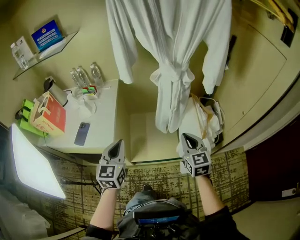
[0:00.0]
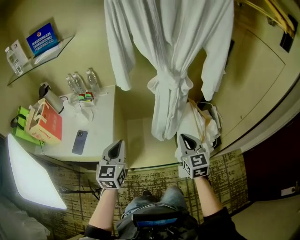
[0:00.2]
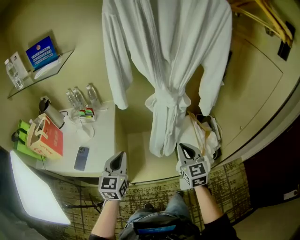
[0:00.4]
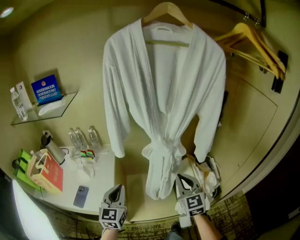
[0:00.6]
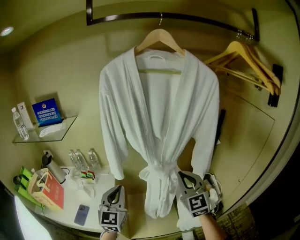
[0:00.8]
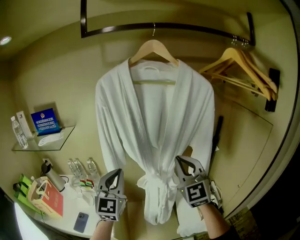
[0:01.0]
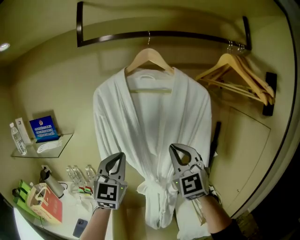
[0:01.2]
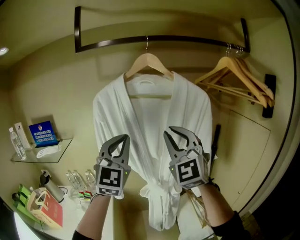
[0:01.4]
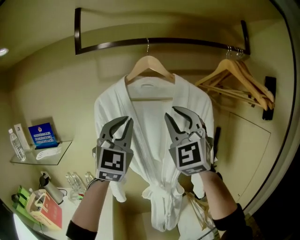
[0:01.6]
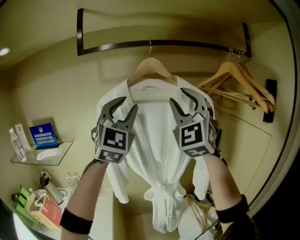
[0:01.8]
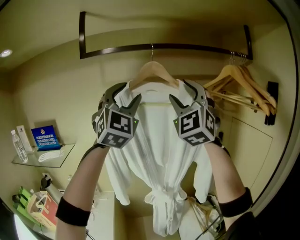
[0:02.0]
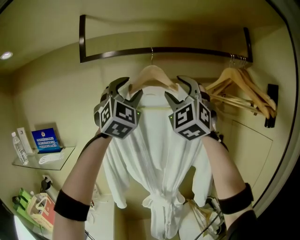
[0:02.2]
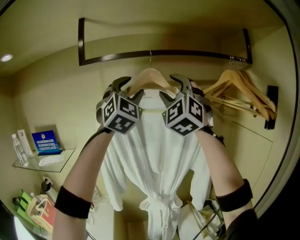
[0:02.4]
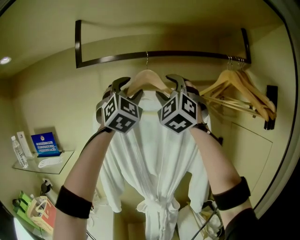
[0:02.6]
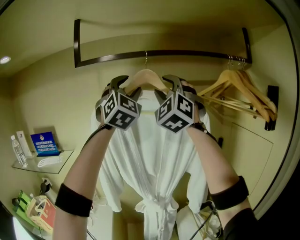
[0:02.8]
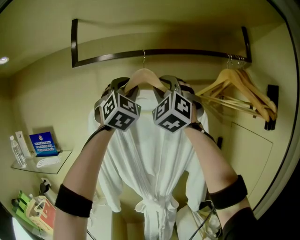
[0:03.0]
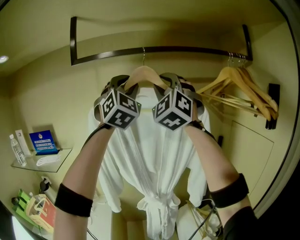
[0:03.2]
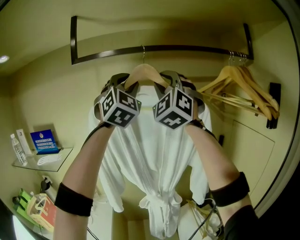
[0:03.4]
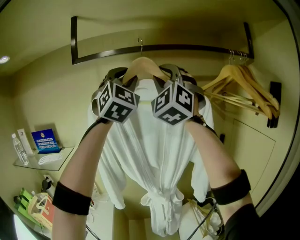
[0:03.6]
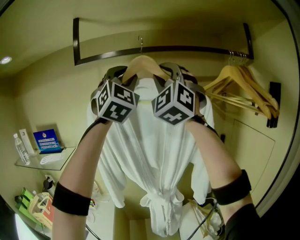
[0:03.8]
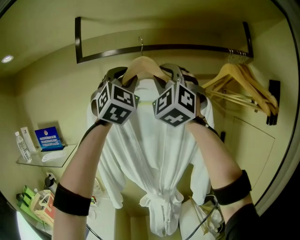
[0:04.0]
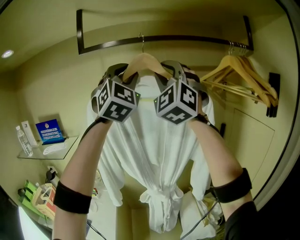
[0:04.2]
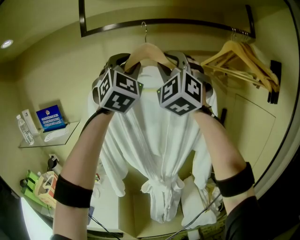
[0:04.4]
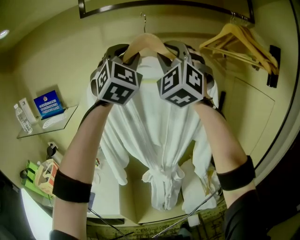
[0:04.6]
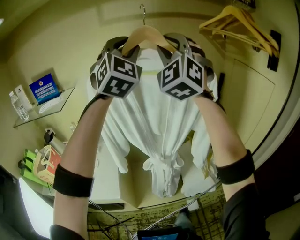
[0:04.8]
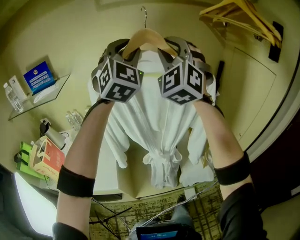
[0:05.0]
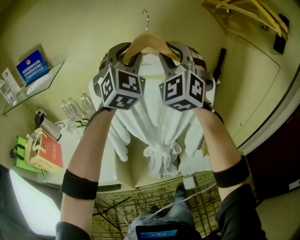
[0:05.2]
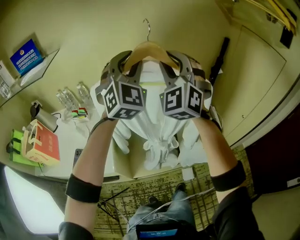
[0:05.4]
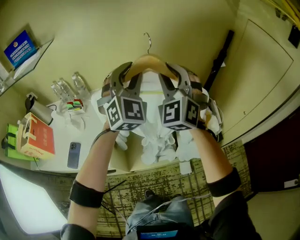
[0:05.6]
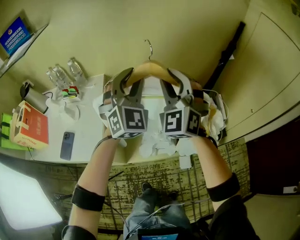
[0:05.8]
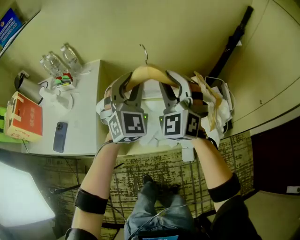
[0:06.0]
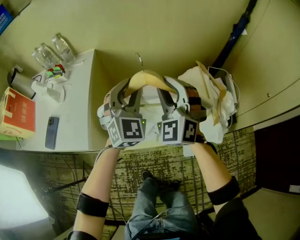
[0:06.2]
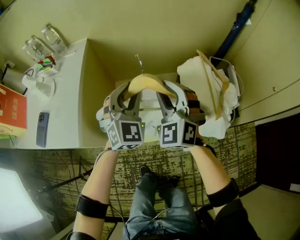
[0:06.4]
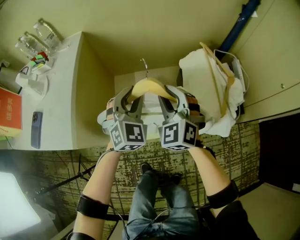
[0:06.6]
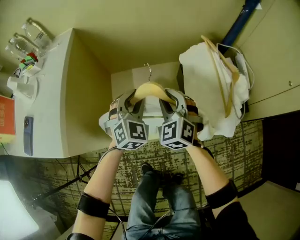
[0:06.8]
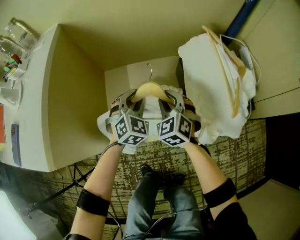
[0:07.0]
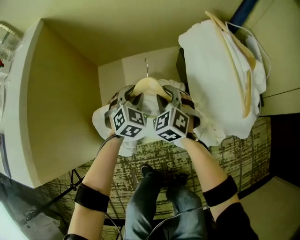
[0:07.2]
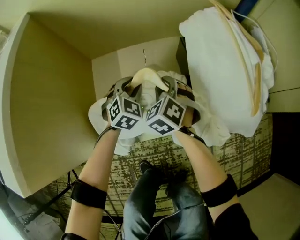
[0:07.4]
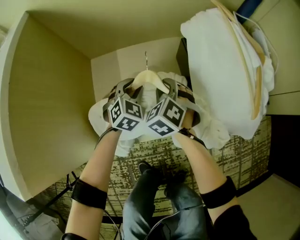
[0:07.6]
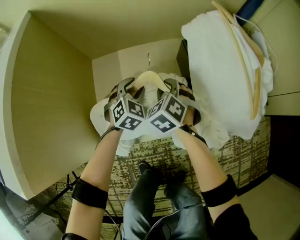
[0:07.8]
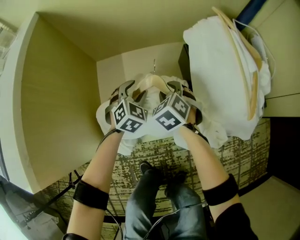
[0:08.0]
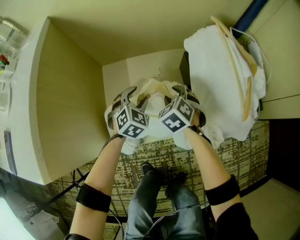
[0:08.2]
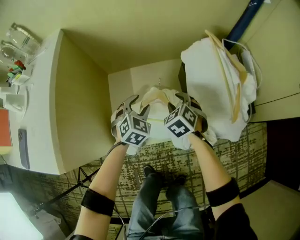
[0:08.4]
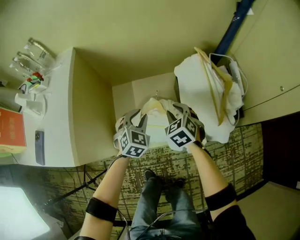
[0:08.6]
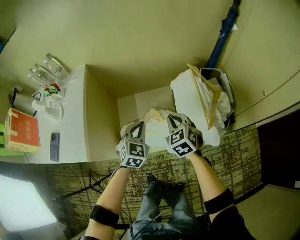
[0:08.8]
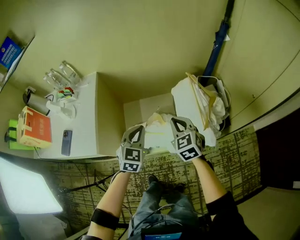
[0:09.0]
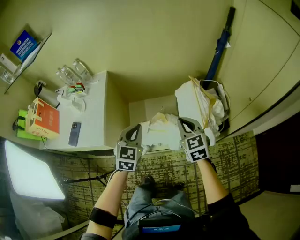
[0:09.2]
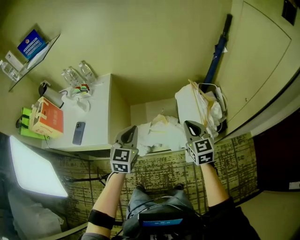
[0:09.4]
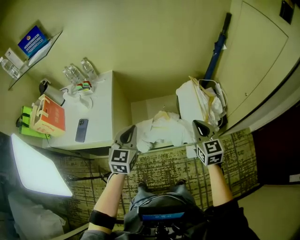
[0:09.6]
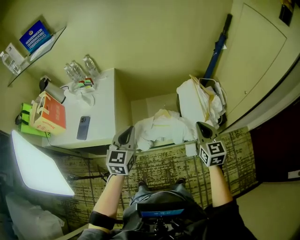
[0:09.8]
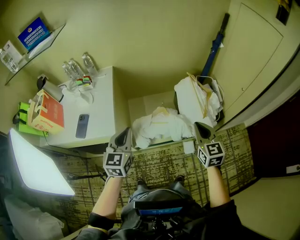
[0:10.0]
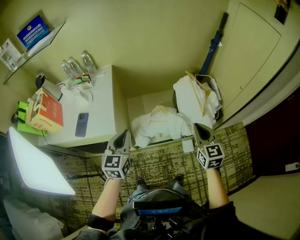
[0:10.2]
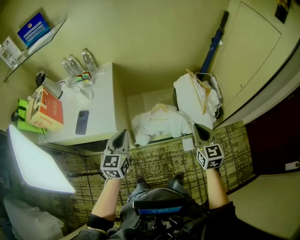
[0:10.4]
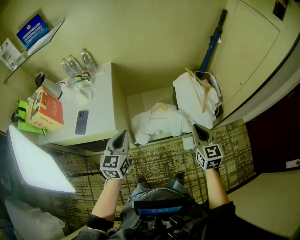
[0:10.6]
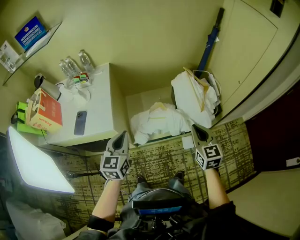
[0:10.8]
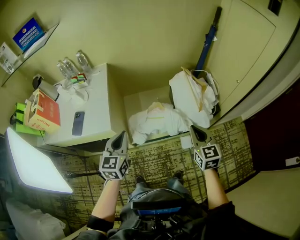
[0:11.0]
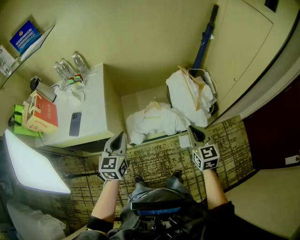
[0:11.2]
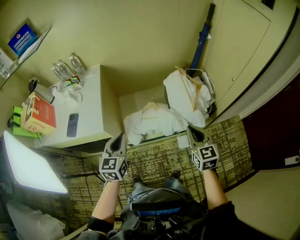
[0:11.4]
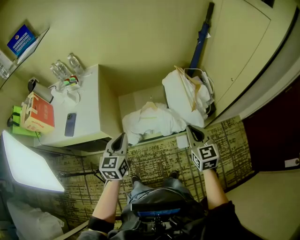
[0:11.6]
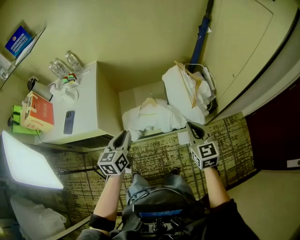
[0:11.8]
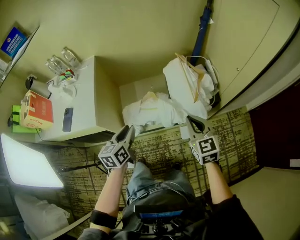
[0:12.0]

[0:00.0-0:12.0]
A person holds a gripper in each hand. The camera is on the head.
0:00.0 to 0:01.6: Both grippers move upward and forward, approximately 60 cm. The left gripper points its fingers roughly 30 degrees further upward, while the right gripper tips its fingers upward by roughly 40 degrees.
0:01.6 to 0:03.0: Both grippers travel together upward and forward, roughly 15 cm. The right gripper swivels about 20 degrees, and opens and closes again. The left gripper opens its fingers.
0:03.0 to 0:04.4: Both grippers move backward, some 10 cm.
0:04.4 to 0:06.0: Both grippers move downward, roughly 60 cm. The right gripper changes its angle by some 30 degrees. Meanwhile the left gripper rotates some 30 degrees.
0:06.0 to 0:07.6: Both grippers move downward, some 60 cm. The right gripper angles its fingers downward, by some 40 degrees, while the left gripper angles its fingers downward, by approximately 40 degrees.
0:07.6 to 0:09.0: The grippers both shift upward by some 40 cm. The right gripper changes its angle by about 30 degrees, and closes its fingers. The left gripper closes up.
0:09.0 to 0:10.4: The left gripper heads to the left, backward and upward, covering roughly 25 cm, and swivels roughly 20 degrees; the right gripper goes about 25 cm backward and upward, and swivels about 20 degrees.
0:10.4 to 0:12.0: The left gripper goes about 15 cm to the right and downward, changes its angle by approximately 30 degrees, and opens. Meanwhile the right gripper goes some 10 cm to the right.

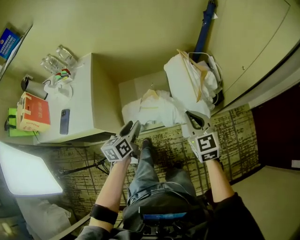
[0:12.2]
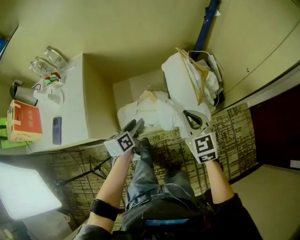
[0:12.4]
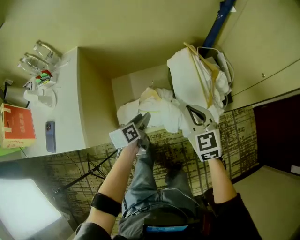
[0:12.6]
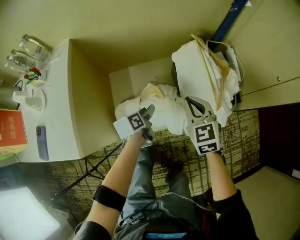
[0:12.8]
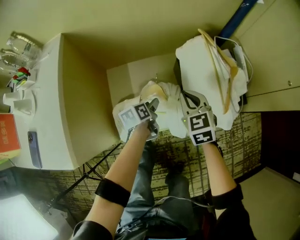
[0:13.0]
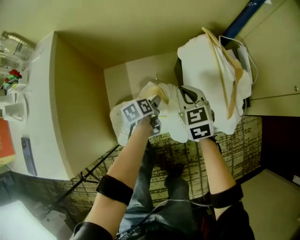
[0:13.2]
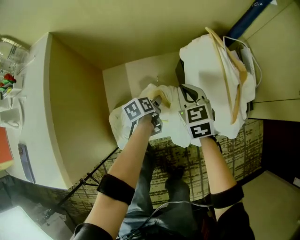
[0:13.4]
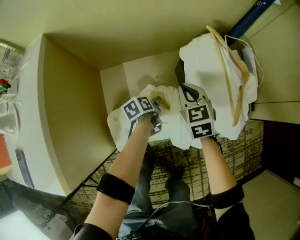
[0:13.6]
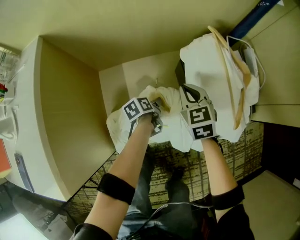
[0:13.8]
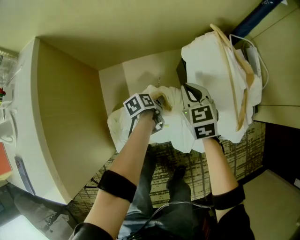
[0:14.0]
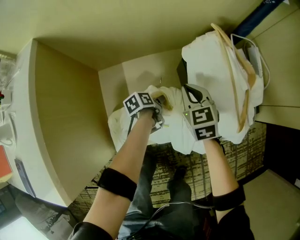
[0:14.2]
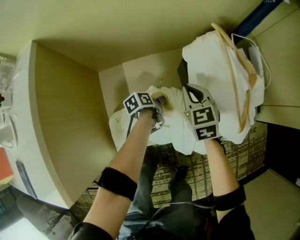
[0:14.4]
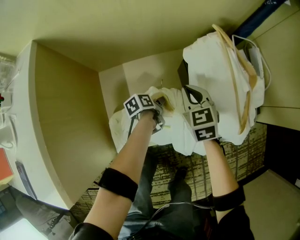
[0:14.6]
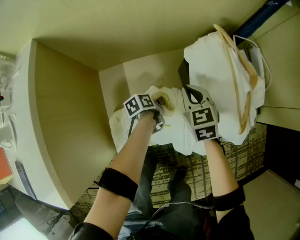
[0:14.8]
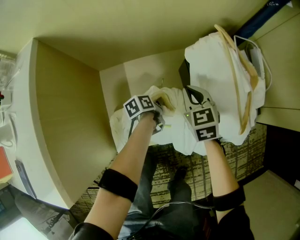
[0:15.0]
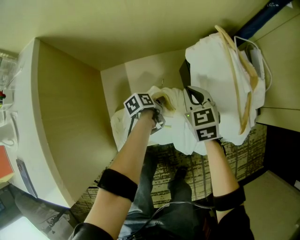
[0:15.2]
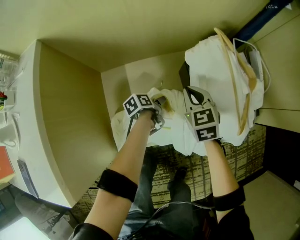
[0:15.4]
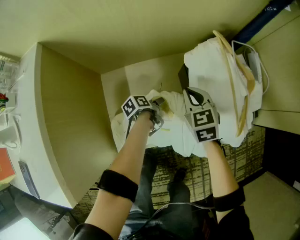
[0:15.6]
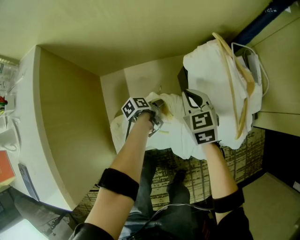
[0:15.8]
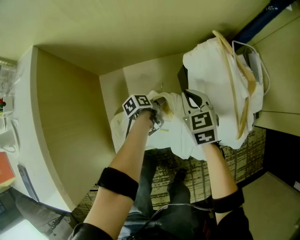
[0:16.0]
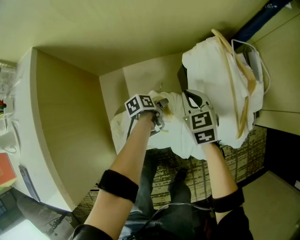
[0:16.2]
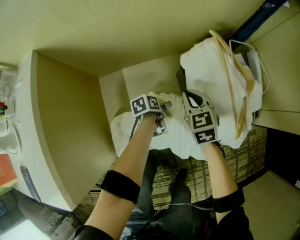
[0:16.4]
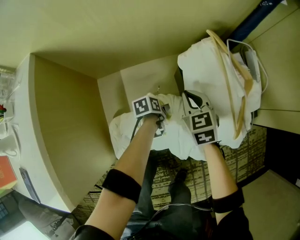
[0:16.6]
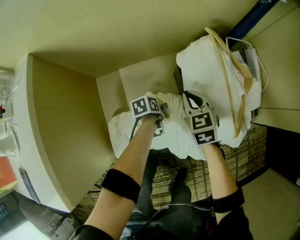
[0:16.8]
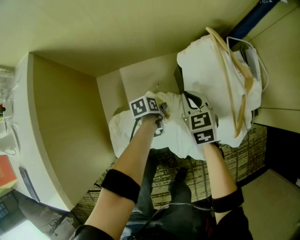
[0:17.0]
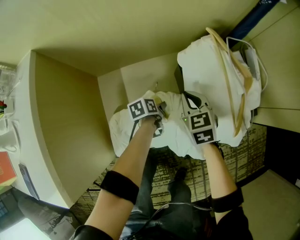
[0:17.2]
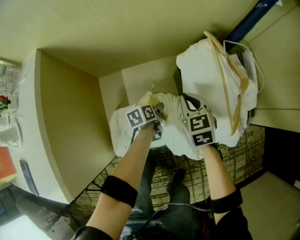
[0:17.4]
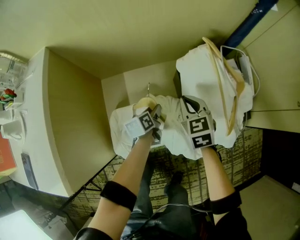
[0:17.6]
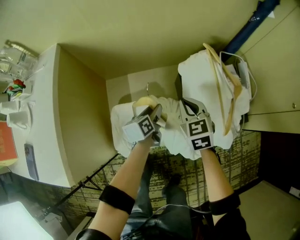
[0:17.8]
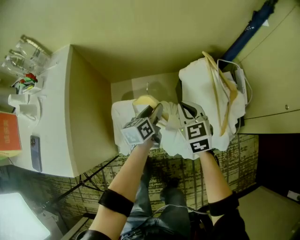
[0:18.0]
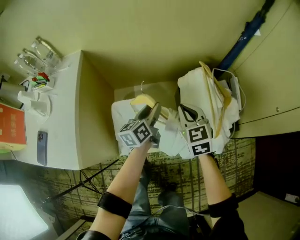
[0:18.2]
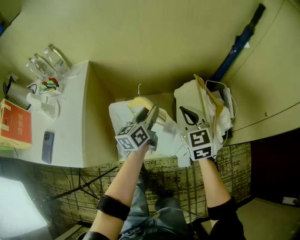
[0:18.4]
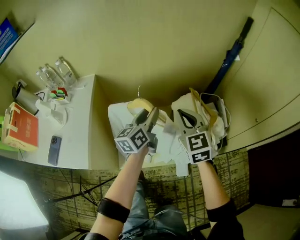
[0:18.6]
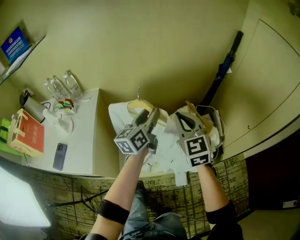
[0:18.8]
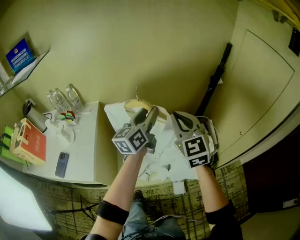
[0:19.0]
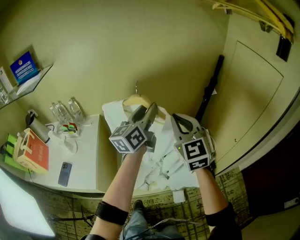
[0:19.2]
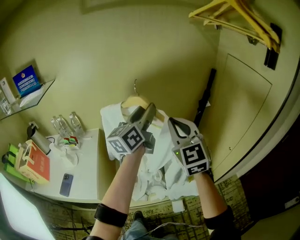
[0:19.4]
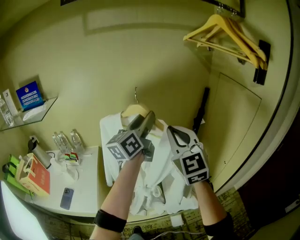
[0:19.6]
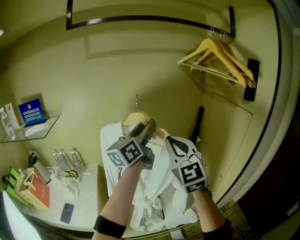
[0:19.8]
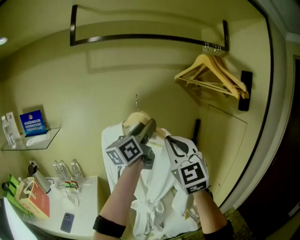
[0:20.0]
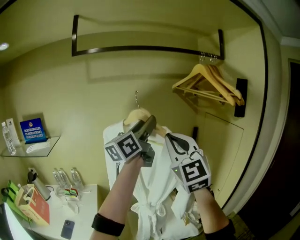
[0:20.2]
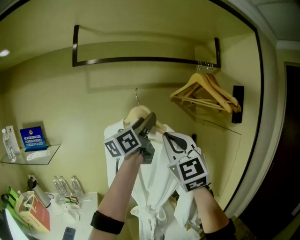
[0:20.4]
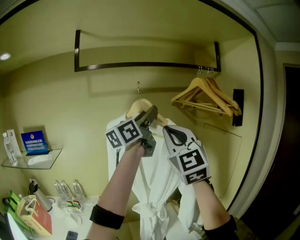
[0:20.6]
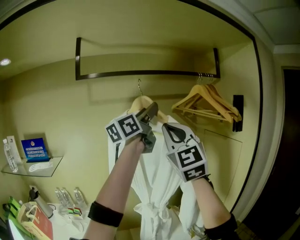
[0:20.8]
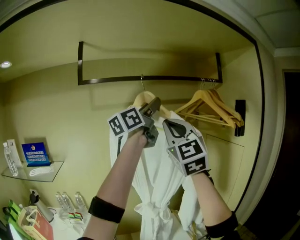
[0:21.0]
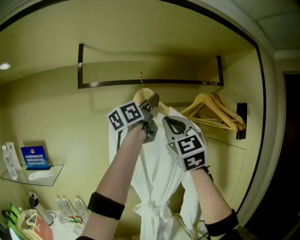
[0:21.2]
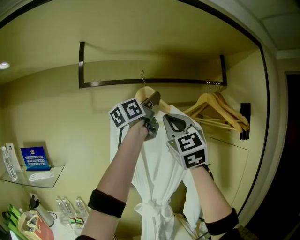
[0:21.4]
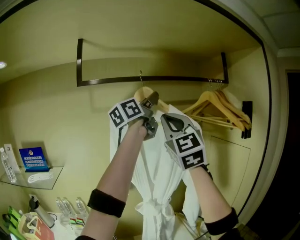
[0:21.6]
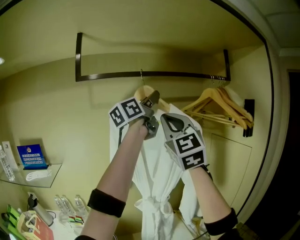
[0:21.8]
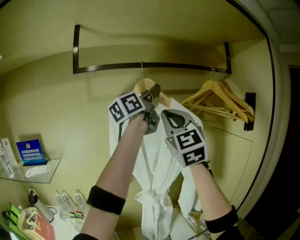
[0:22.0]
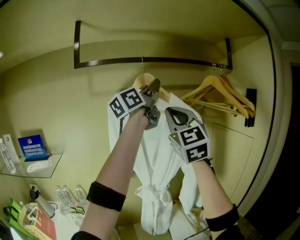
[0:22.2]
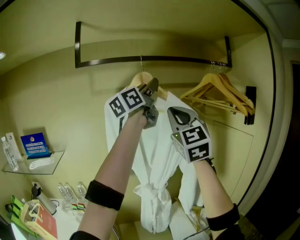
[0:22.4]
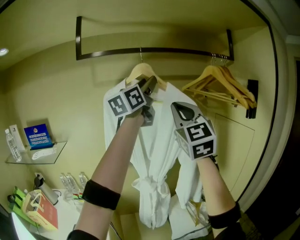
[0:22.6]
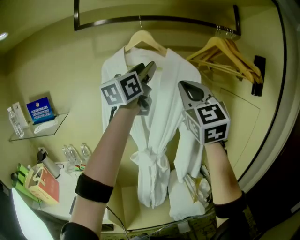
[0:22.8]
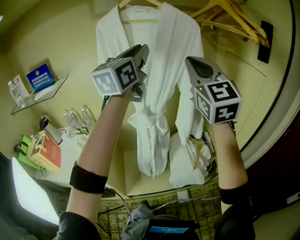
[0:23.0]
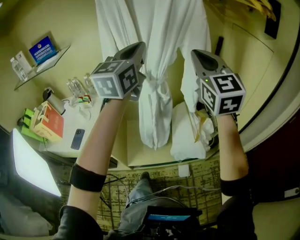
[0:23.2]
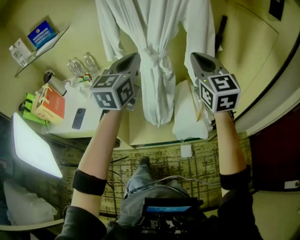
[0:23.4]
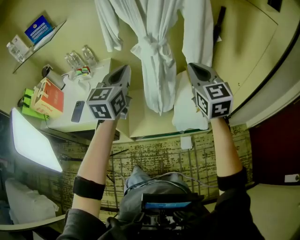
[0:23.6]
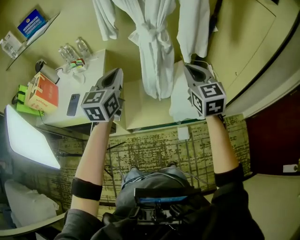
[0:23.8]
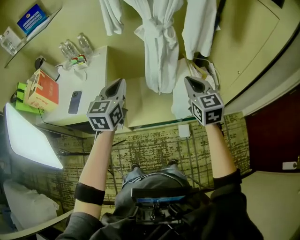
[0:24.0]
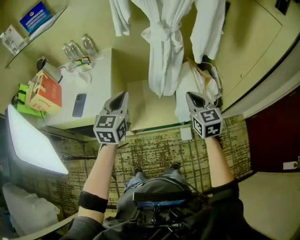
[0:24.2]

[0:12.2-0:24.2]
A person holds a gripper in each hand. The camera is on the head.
0:12.2 to 0:13.8: The right gripper shifts approximately 50 cm downward, forward and to the left. The left gripper shifts about 50 cm downward and forward, and turns by some 40 degrees.
0:13.8 to 0:15.2: The left gripper closes, then opens again.
0:15.2 to 0:16.6: The left gripper opens its fingers.
0:16.6 to 0:18.2: The left gripper is displaced upward by some 30 cm, and tips its fingers upward by approximately 40 degrees, while the right gripper heads upward, covering roughly 20 cm.
0:18.2 to 0:19.8: Both grippers move upward, some 60 cm. The right gripper tips its fingers upward by roughly 40 degrees. Meanwhile the left gripper points its fingers roughly 40 degrees further upward.
0:19.8 to 0:21.2: Both grippers move upward, roughly 30 cm.
0:21.2 to 0:22.6: The left gripper shifts by roughly 5 cm. Meanwhile the right gripper shifts about 5 cm downward.
0:22.6 to 0:24.2: The left gripper travels downward and backward by about 70 cm, tips its fingers downward by roughly 40 degrees, and closes. The right gripper is displaced downward by about 60 cm, and tilts its fingers roughly 40 degrees downward.
